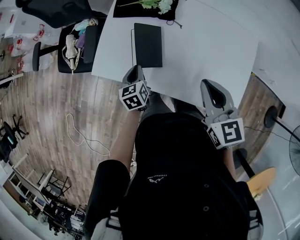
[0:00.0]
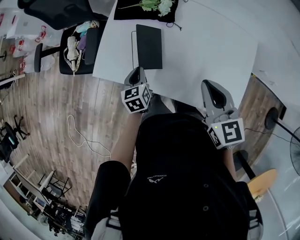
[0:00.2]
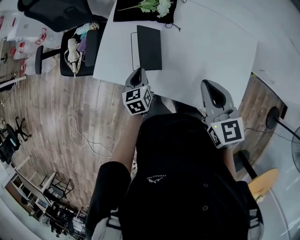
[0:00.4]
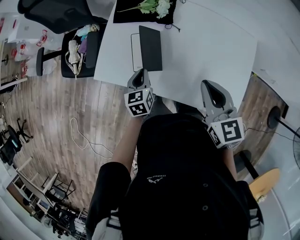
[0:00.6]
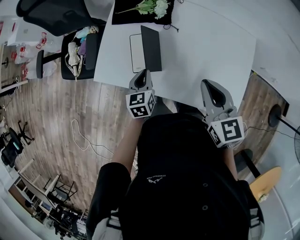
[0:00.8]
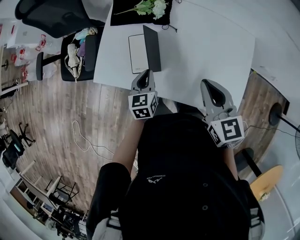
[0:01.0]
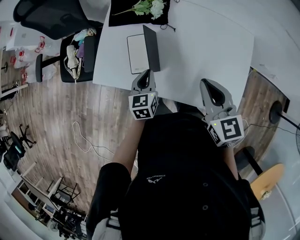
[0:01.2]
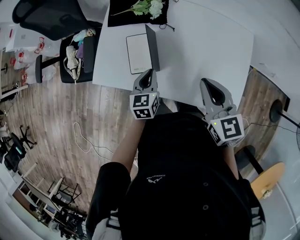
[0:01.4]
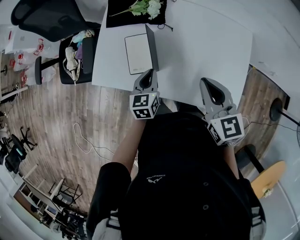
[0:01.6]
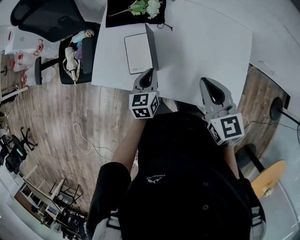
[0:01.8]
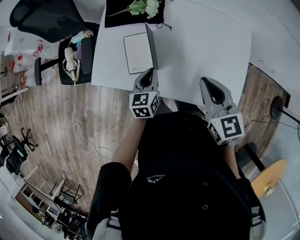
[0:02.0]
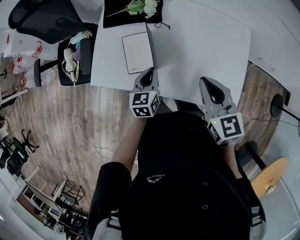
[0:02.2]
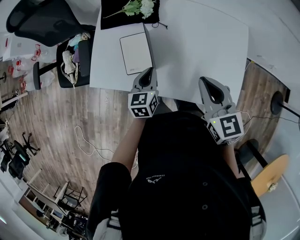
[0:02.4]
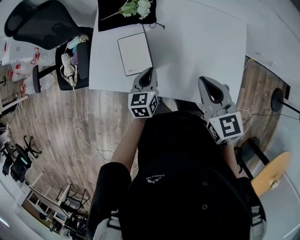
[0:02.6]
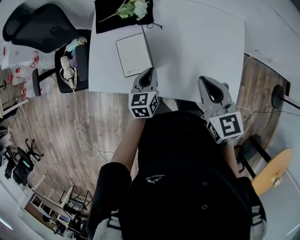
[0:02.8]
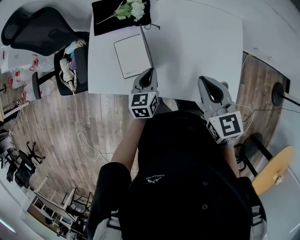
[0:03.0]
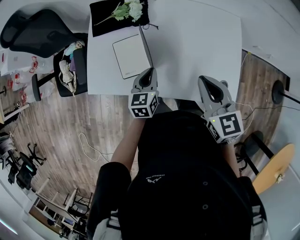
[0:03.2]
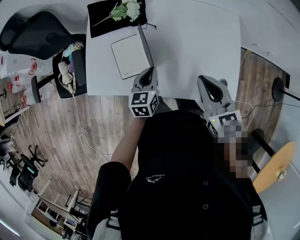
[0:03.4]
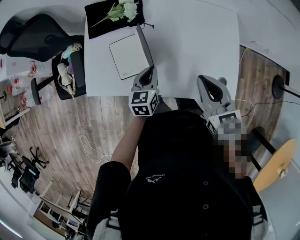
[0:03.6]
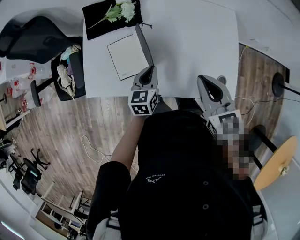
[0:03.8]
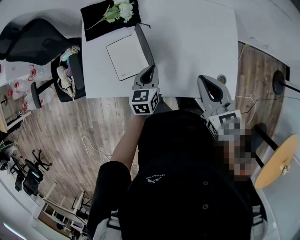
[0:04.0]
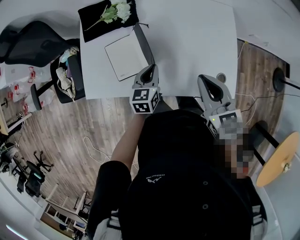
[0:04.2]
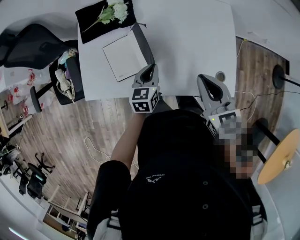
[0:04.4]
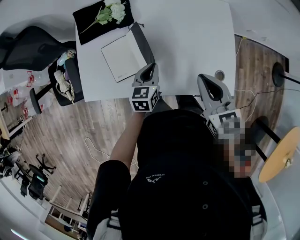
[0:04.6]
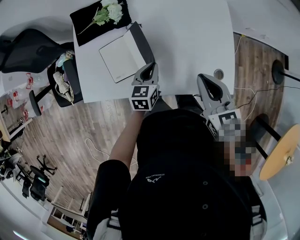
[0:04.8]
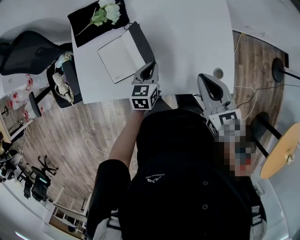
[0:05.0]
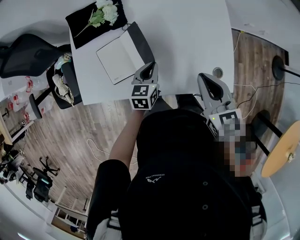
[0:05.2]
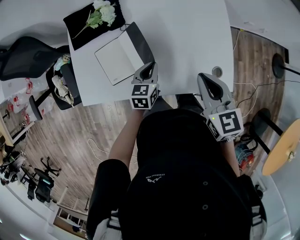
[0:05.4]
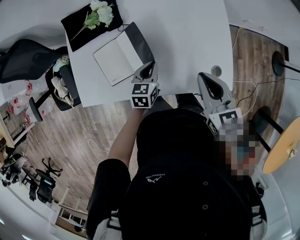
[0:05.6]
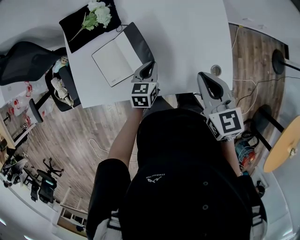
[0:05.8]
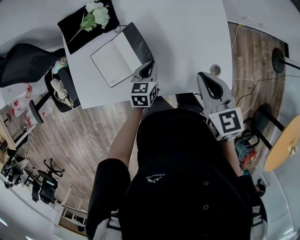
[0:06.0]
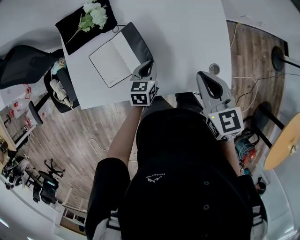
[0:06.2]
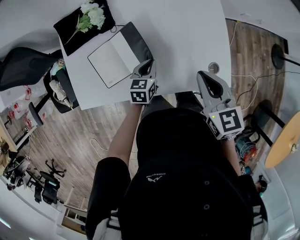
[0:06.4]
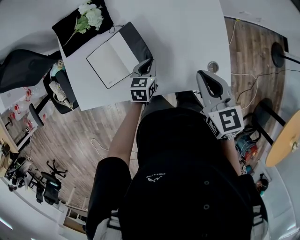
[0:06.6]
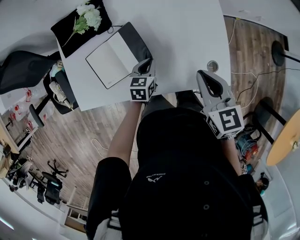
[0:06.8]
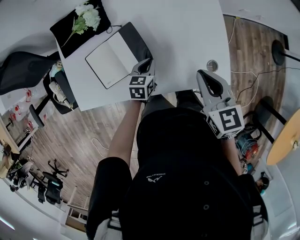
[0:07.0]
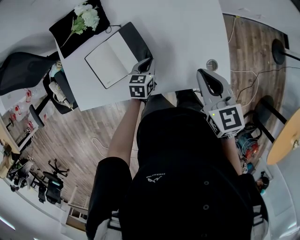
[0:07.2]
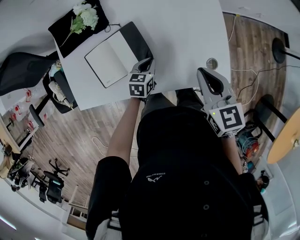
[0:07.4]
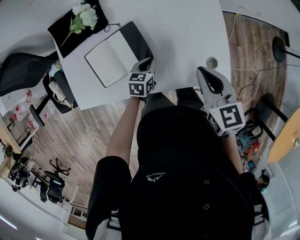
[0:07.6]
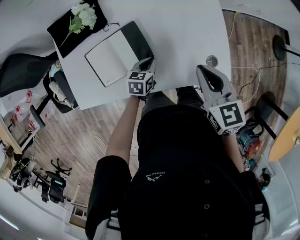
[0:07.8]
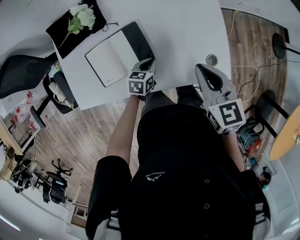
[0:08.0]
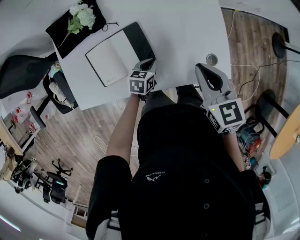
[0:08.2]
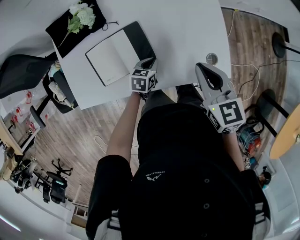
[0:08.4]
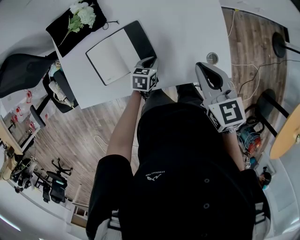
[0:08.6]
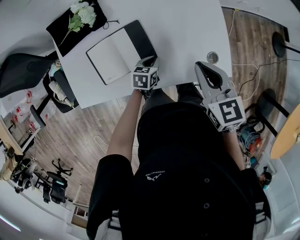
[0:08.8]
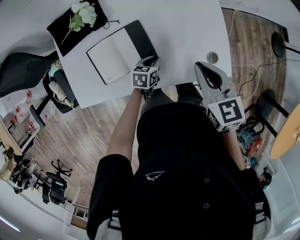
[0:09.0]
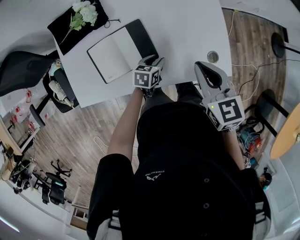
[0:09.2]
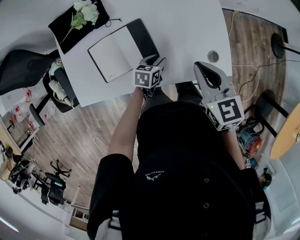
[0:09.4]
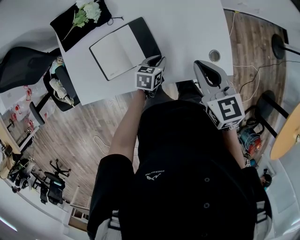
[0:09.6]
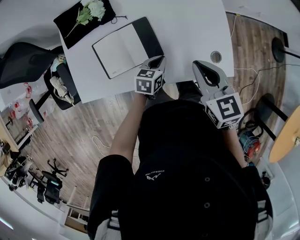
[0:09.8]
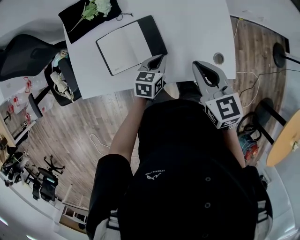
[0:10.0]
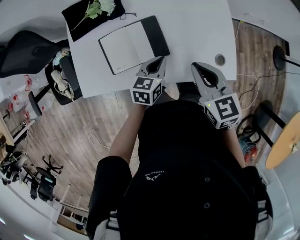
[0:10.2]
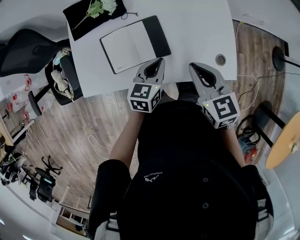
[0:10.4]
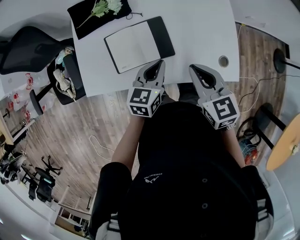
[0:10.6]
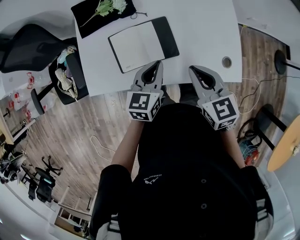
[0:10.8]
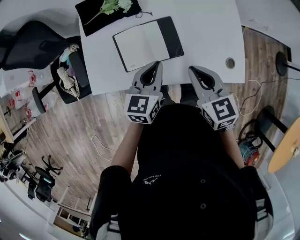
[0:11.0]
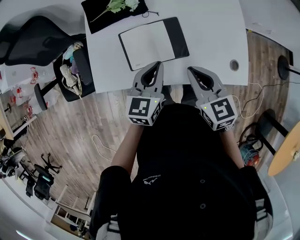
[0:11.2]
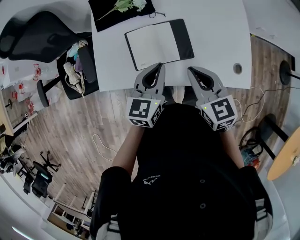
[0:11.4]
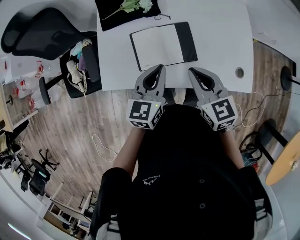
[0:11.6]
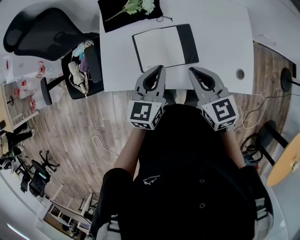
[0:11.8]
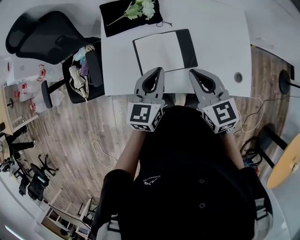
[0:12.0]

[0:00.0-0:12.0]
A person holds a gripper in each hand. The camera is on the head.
0.0 to 1.6 s: The left gripper moves to the right and upward, about 10 cm.
1.6 to 3.0 s: The grippers make only small movements.
3.0 to 4.4 s: The left gripper moves some 5 cm.
4.4 to 6.0 s: The left gripper ends up about 5 cm from where it was.
6.0 to 7.6 s: The left gripper is displaced downward by some 5 cm.
7.6 to 9.0 s: The grippers move only a little.
9.0 to 10.4 s: The right gripper heads to the left, covering about 5 cm. Meanwhile the left gripper goes approximately 15 cm upward, and changes its angle by approximately 30 degrees.
10.4 to 12.0 s: The left gripper travels to the left and upward by approximately 15 cm. Meanwhile the right gripper moves to the left, about 10 cm.

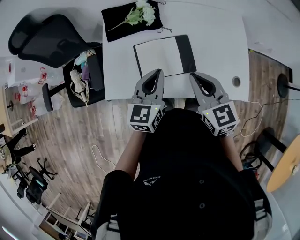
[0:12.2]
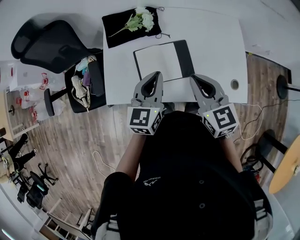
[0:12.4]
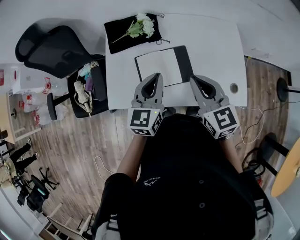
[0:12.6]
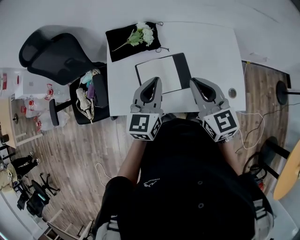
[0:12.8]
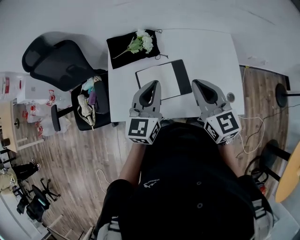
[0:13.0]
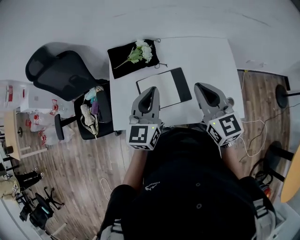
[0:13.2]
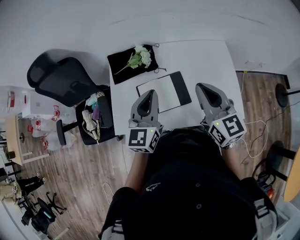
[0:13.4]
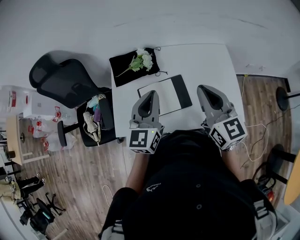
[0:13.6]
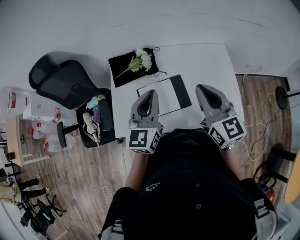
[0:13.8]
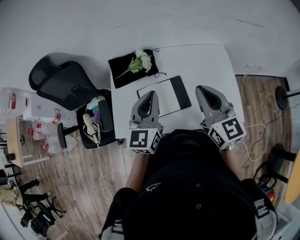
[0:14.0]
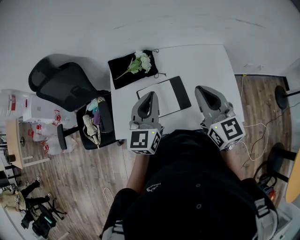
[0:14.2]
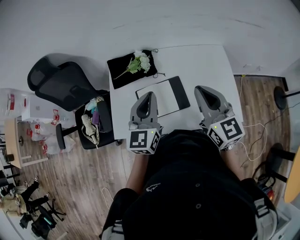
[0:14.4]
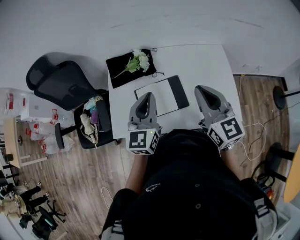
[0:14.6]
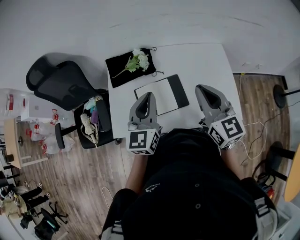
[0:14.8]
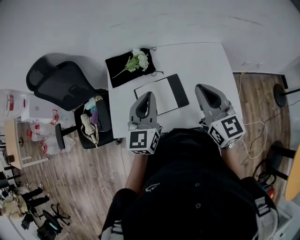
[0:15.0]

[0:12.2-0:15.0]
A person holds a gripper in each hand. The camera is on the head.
12.2 to 13.6 s: The right gripper moves upward and to the right, some 15 cm, and rotates roughly 20 degrees, while the left gripper goes about 10 cm upward.
13.6 to 15.0 s: Both grippers stay put.

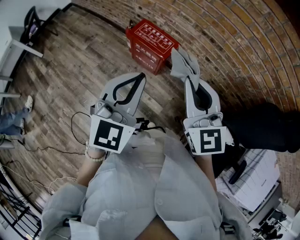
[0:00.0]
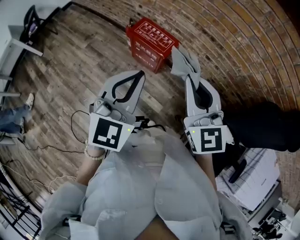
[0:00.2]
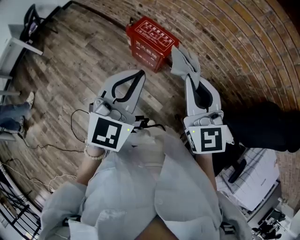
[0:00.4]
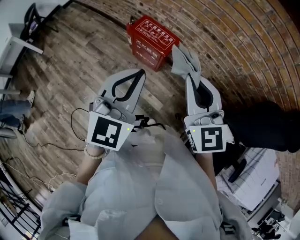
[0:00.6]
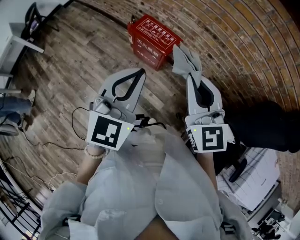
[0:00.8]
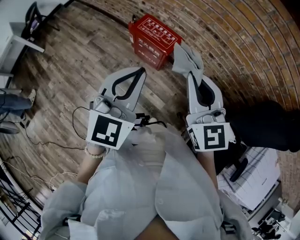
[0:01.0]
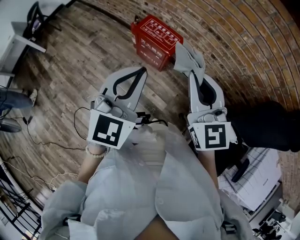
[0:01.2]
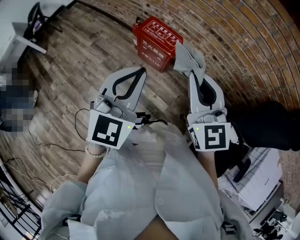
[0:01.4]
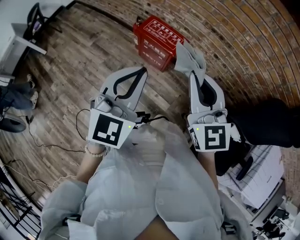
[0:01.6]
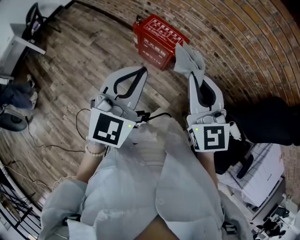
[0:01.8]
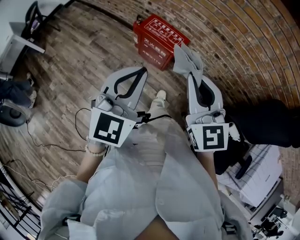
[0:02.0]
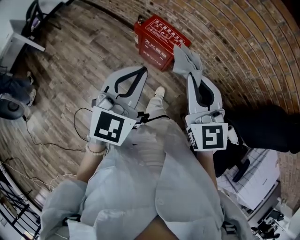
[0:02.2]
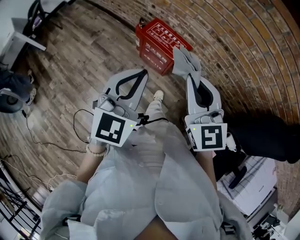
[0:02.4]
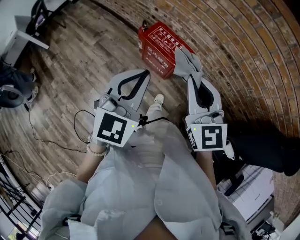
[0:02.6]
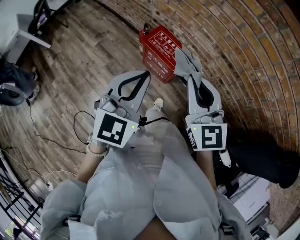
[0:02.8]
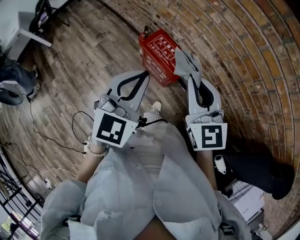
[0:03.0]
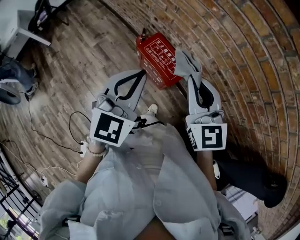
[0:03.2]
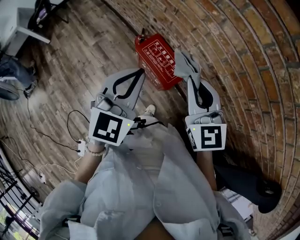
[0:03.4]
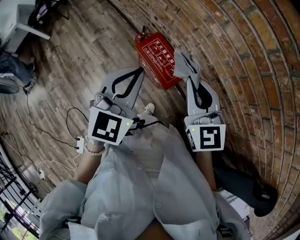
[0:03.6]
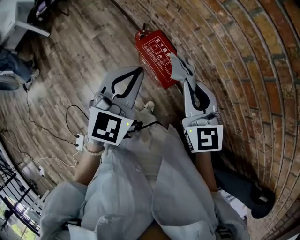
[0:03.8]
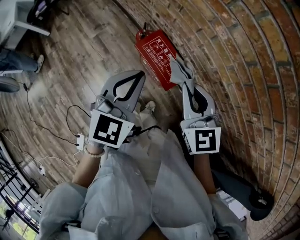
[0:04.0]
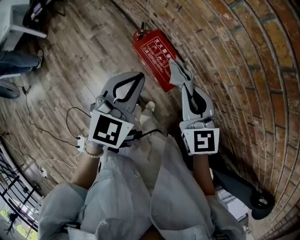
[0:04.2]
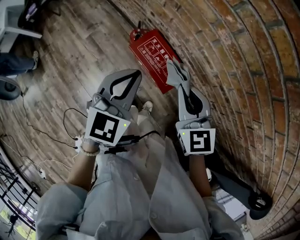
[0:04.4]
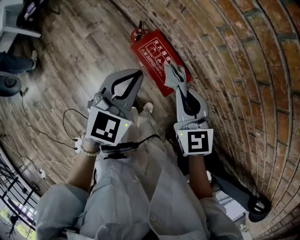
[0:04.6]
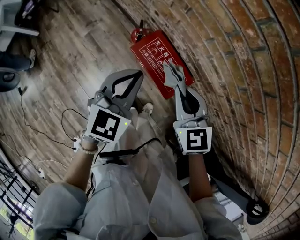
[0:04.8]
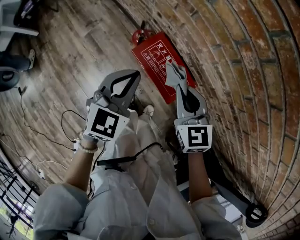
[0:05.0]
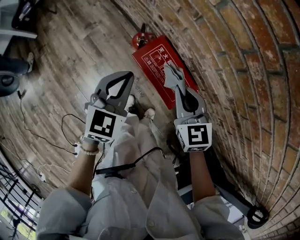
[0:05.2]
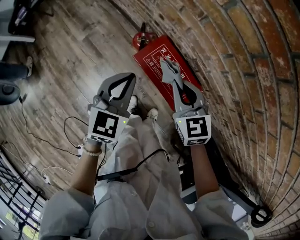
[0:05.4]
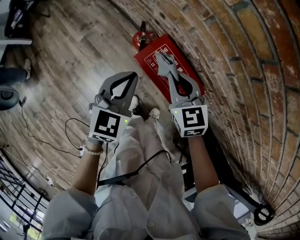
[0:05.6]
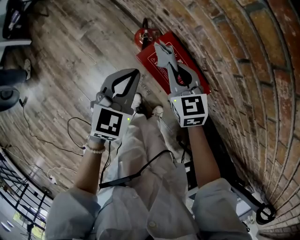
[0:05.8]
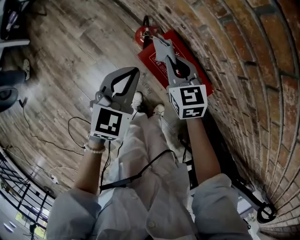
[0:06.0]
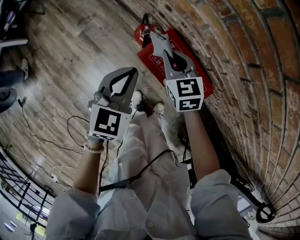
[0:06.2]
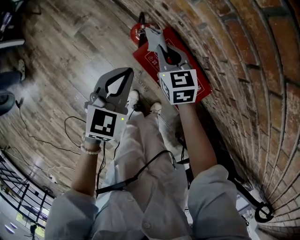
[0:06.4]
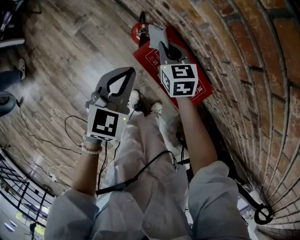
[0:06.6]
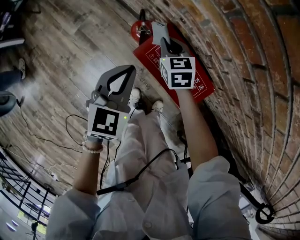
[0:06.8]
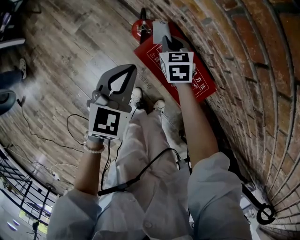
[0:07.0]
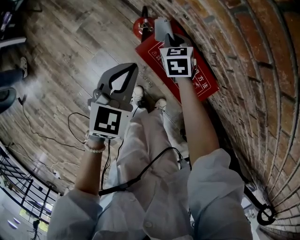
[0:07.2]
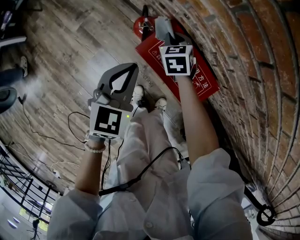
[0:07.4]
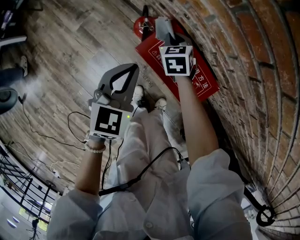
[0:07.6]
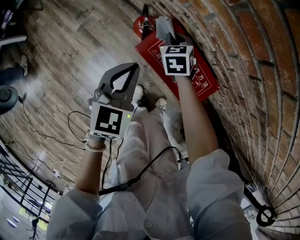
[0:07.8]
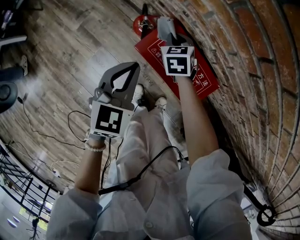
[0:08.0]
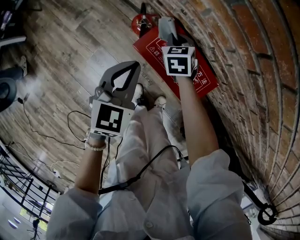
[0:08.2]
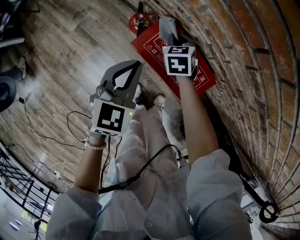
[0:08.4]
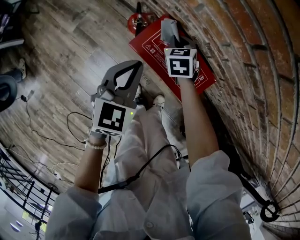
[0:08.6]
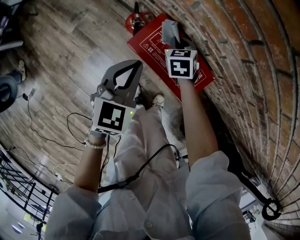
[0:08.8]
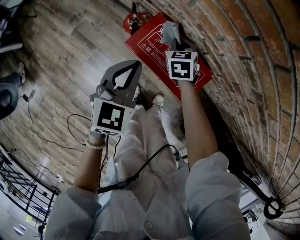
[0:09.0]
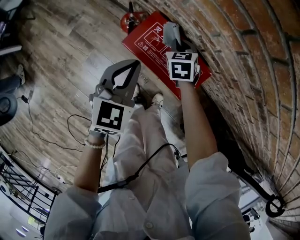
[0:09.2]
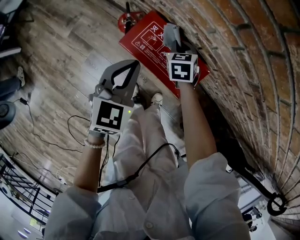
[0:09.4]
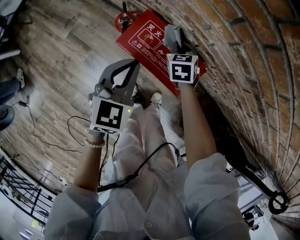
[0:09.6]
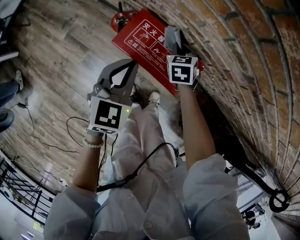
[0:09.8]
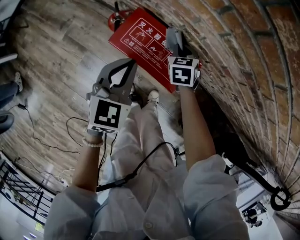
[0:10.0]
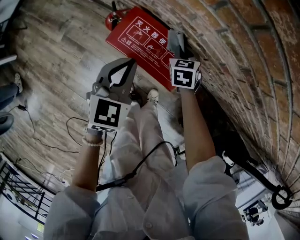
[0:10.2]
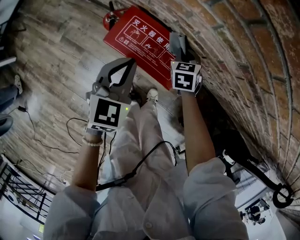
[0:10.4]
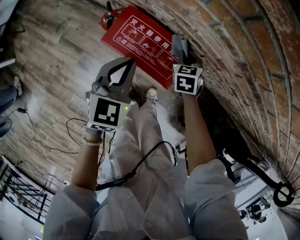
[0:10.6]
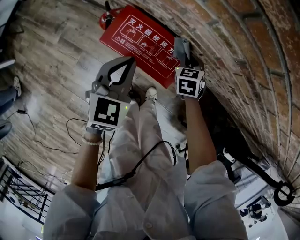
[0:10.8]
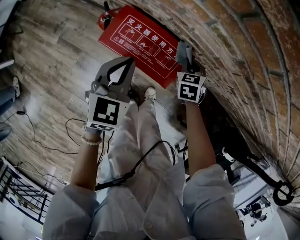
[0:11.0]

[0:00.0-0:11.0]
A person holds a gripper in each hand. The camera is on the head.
0.0 to 1.6 s: The left gripper goes approximately 5 cm to the left; the right gripper moves roughly 5 cm.
1.6 to 3.2 s: The two grippers go roughly 25 cm forward.
3.2 to 4.8 s: The grippers both shift downward and forward by about 20 cm.
4.8 to 6.2 s: The two grippers go roughly 25 cm downward, forward and to the left.
6.2 to 7.8 s: The right gripper heads downward and forward, covering approximately 15 cm, and swivels some 20 degrees.
7.8 to 9.4 s: The right gripper goes roughly 10 cm to the right; the left gripper heads to the right, covering roughly 5 cm.
9.4 to 11.0 s: The right gripper is displaced to the right by some 15 cm, while the left gripper is displaced to the right by roughly 5 cm.
